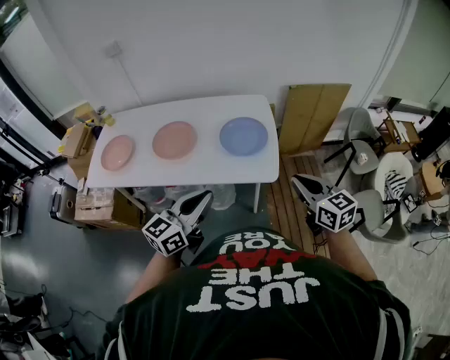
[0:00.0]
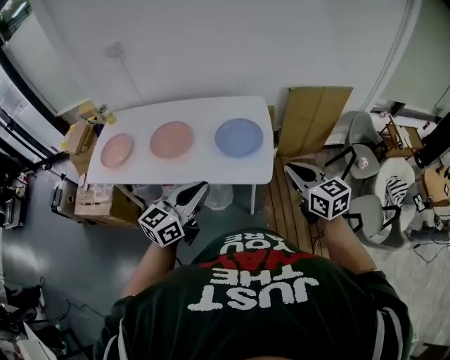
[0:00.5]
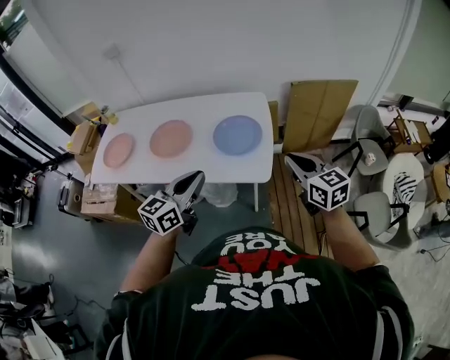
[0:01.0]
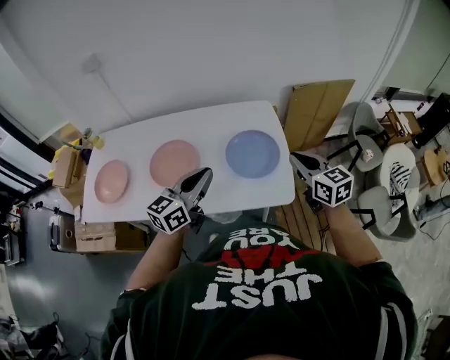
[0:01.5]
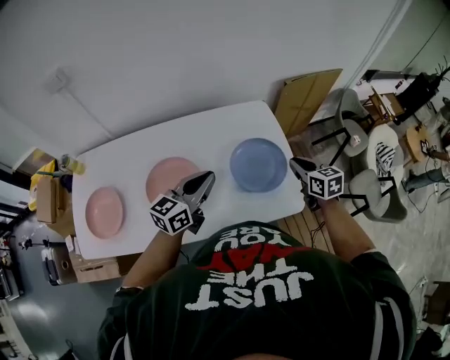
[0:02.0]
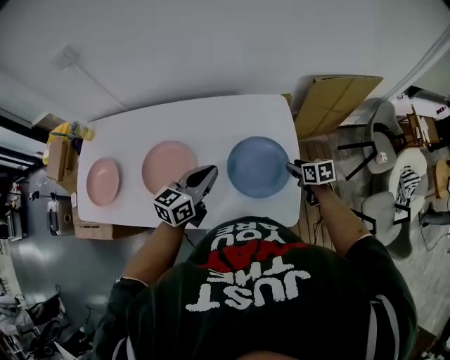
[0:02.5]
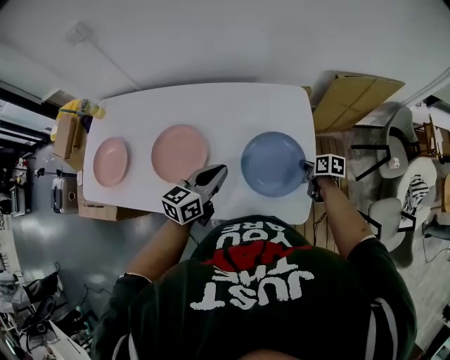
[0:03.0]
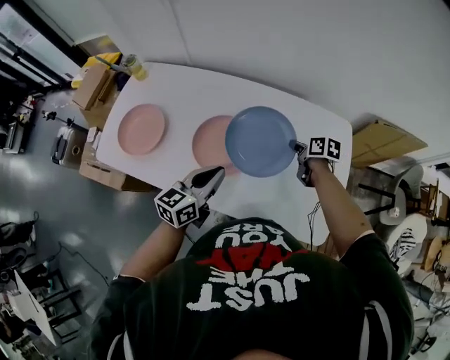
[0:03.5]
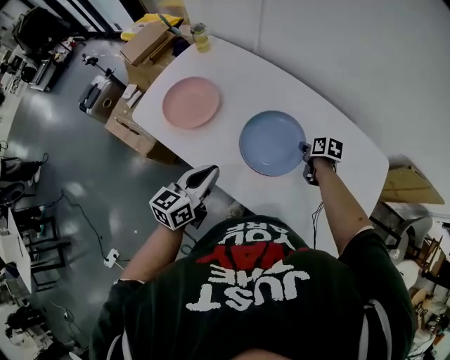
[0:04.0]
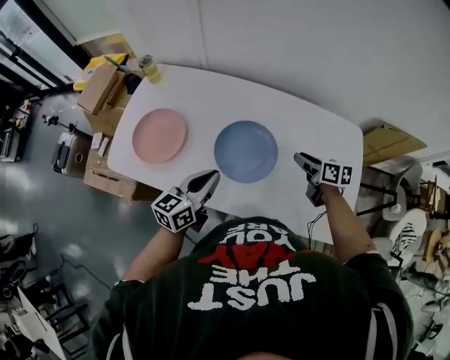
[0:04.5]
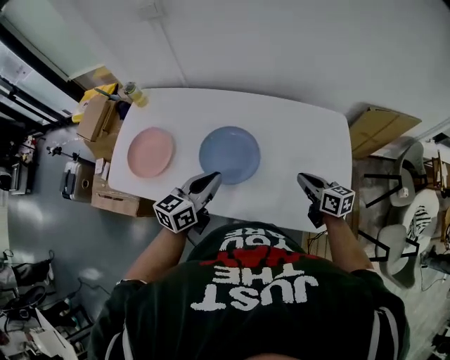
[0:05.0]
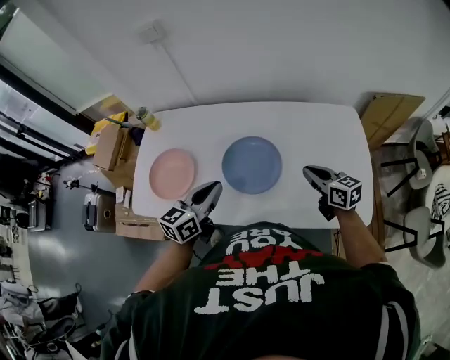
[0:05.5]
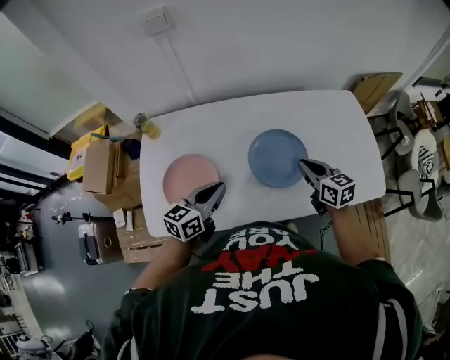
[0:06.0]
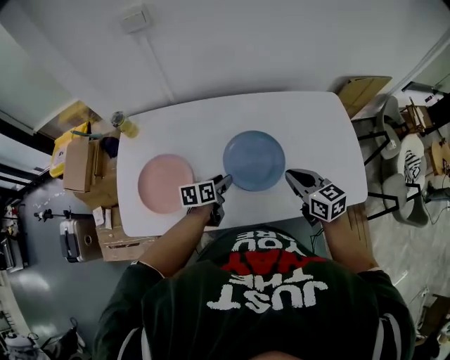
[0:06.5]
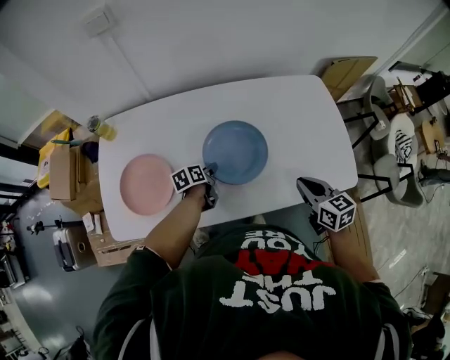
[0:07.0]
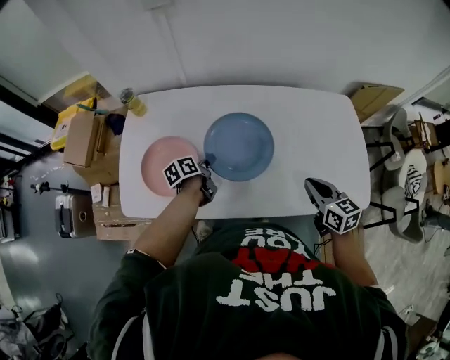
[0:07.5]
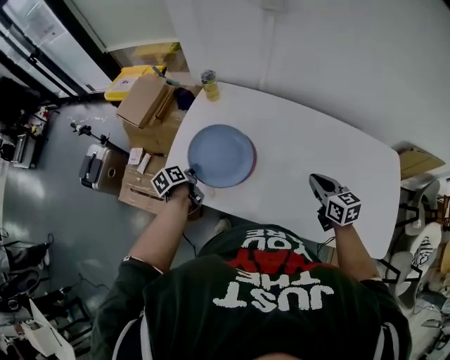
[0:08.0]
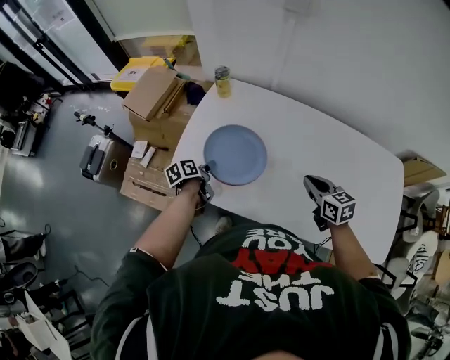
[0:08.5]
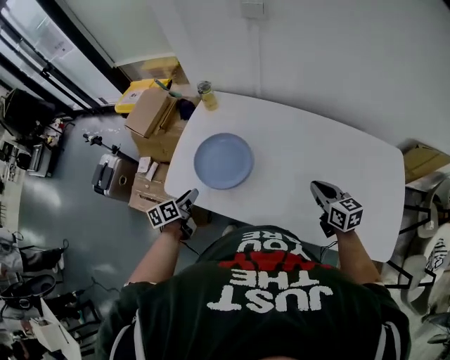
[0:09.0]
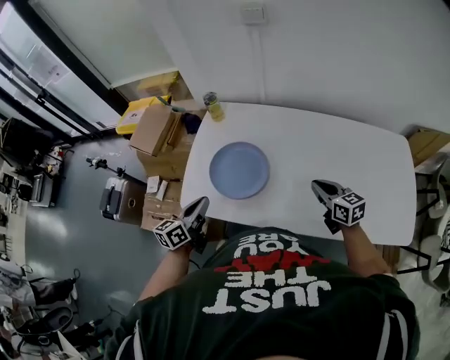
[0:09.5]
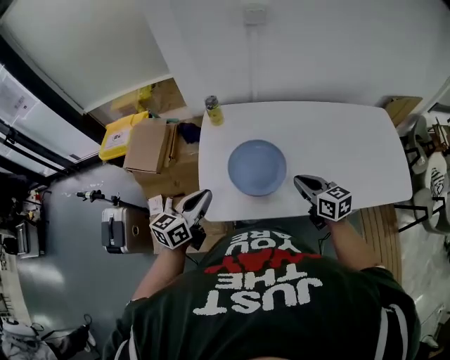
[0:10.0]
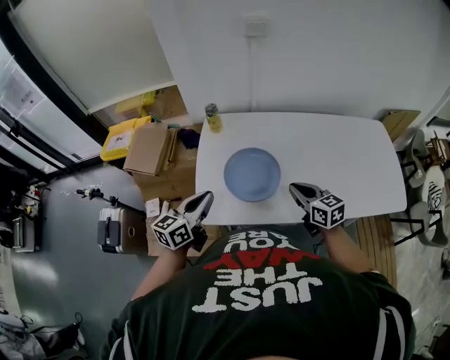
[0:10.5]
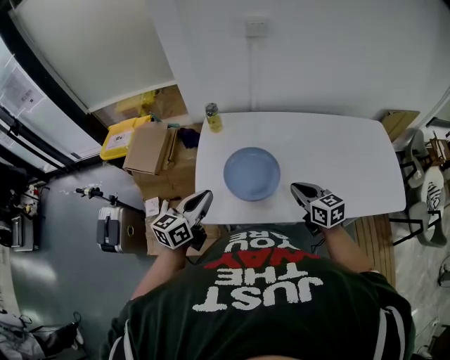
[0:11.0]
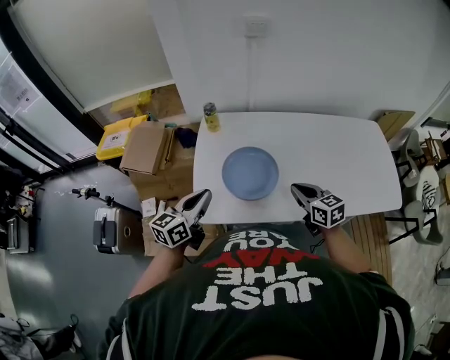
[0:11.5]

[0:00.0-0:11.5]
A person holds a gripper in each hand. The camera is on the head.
0:00.0 to 0:02.0: The left gripper travels forward by some 30 cm; the right gripper moves forward and downward, approximately 30 cm, and changes its angle by some 30 degrees.
0:02.0 to 0:04.0: The left gripper shifts by approximately 30 cm, and rotates about 50 degrees. Meanwhile the right gripper swings up and down, some 20 cm each way, with 2 reversals, changes its angle by approximately 40 degrees, and opens and closes again.
0:04.0 to 0:06.0: The right gripper travels upward by about 15 cm, rotates approximately 40 degrees, and opens, then closes again. Meanwhile the left gripper changes place by some 15 cm, and turns by roughly 40 degrees.
0:06.0 to 0:07.5: The left gripper moves downward and forward, some 20 cm, rotates around the line of its fingers by roughly 50 degrees, counterclockwise from behind, and opens, then closes again. The right gripper heads to the right and backward, covering roughly 10 cm.
0:07.5 to 0:09.5: The right gripper swings left and right, roughly 20 cm each way, with 2 reversals. Meanwhile the left gripper heads to the left and upward, covering approximately 30 cm, turns by approximately 40 degrees, and opens and closes again.
0:09.5 to 0:11.5: The right gripper moves to the left, about 15 cm; the left gripper goes approximately 10 cm to the left and upward, and turns by about 20 degrees.

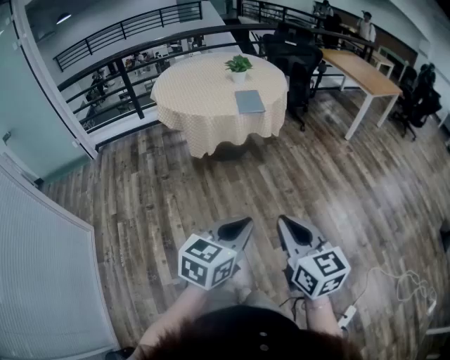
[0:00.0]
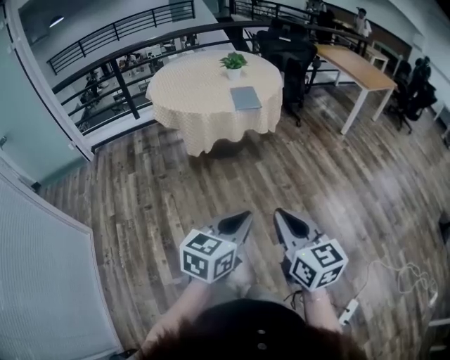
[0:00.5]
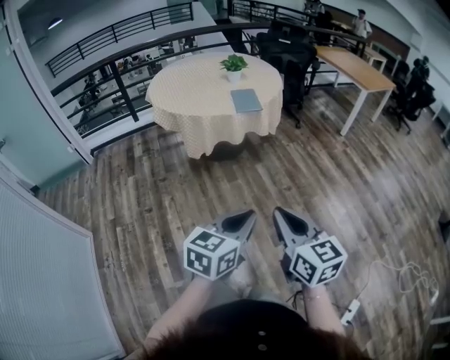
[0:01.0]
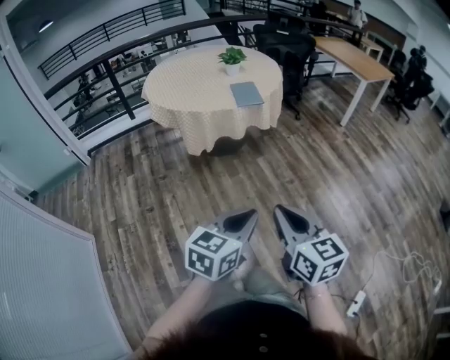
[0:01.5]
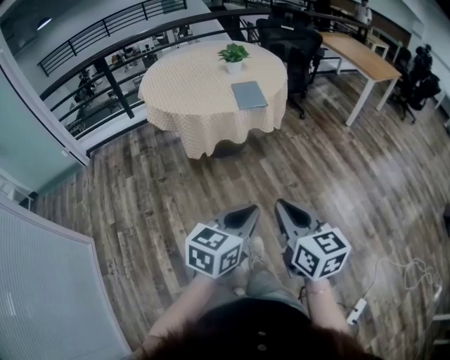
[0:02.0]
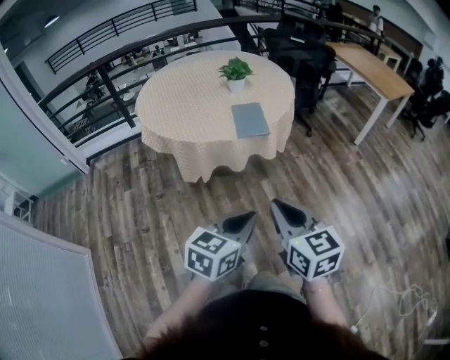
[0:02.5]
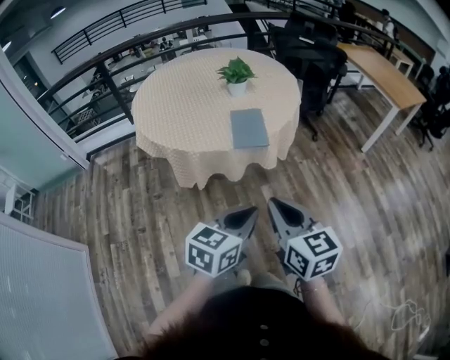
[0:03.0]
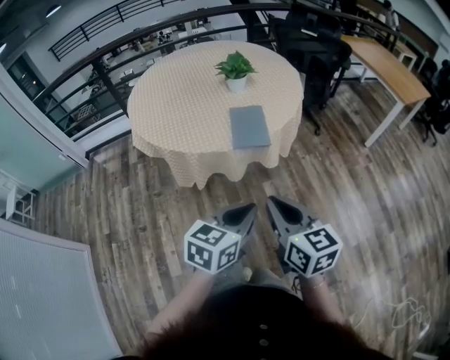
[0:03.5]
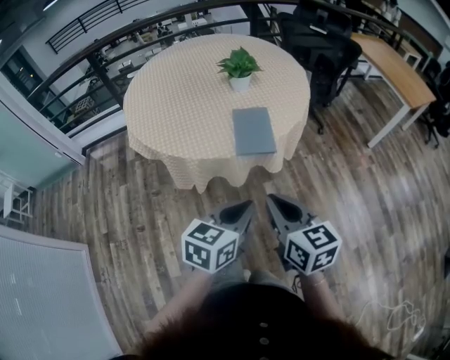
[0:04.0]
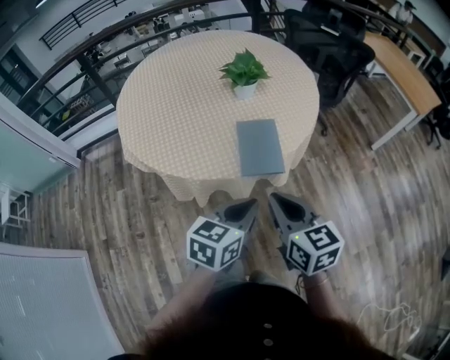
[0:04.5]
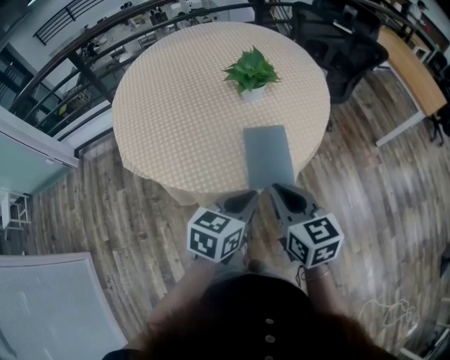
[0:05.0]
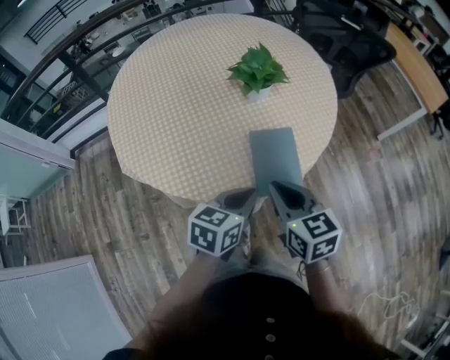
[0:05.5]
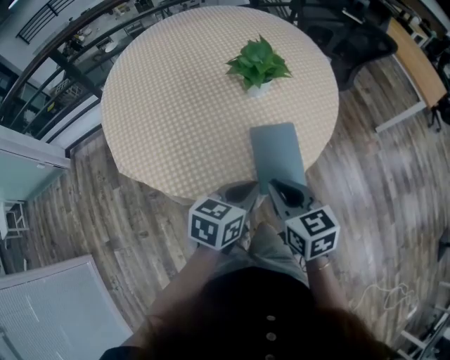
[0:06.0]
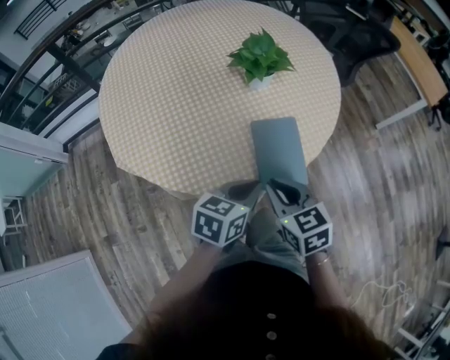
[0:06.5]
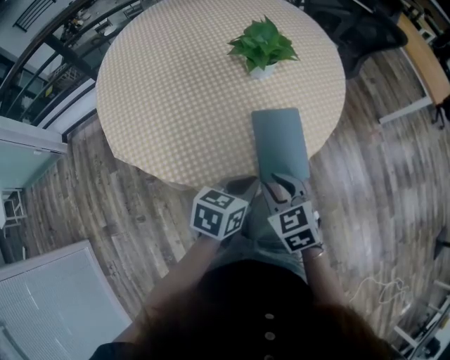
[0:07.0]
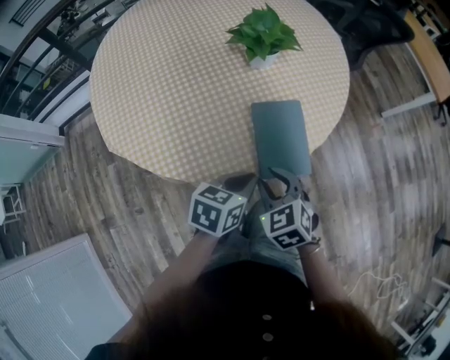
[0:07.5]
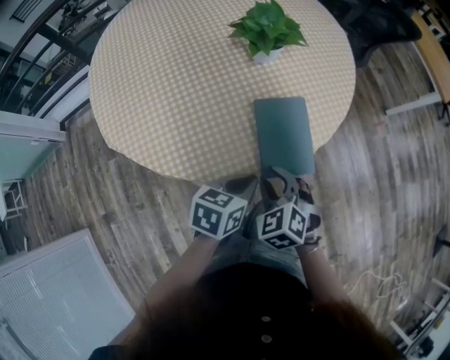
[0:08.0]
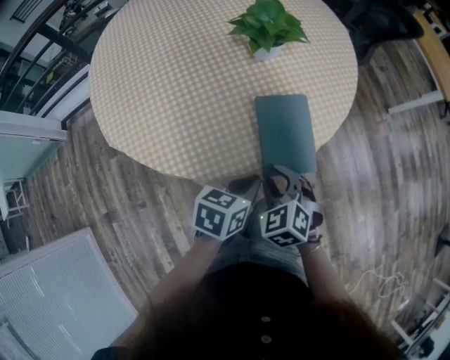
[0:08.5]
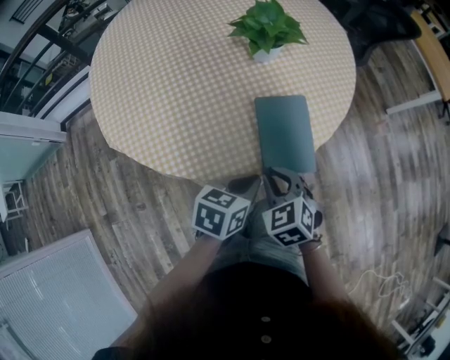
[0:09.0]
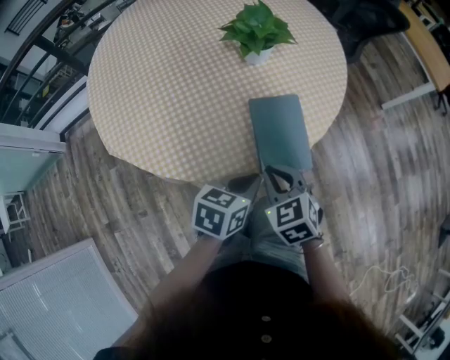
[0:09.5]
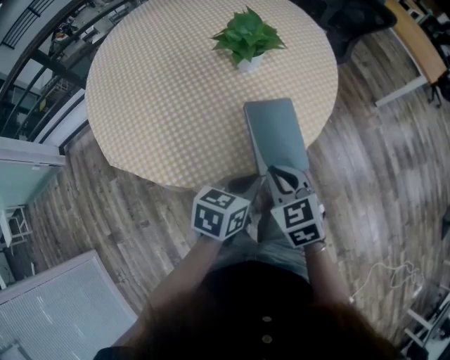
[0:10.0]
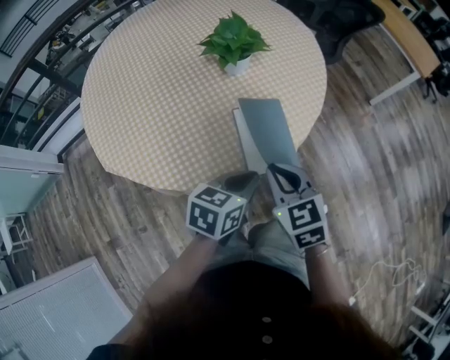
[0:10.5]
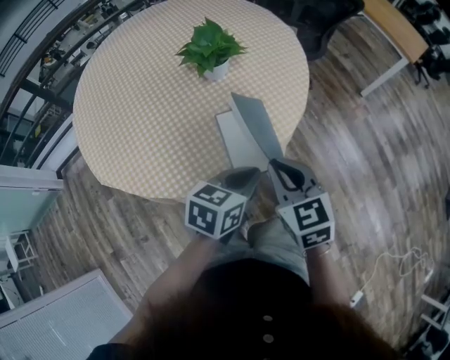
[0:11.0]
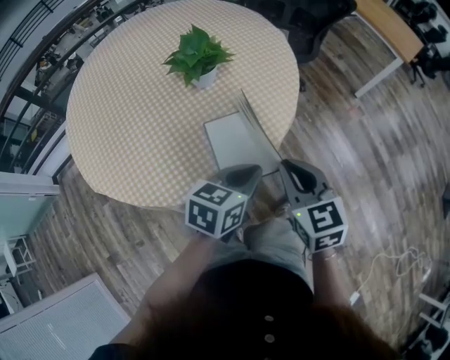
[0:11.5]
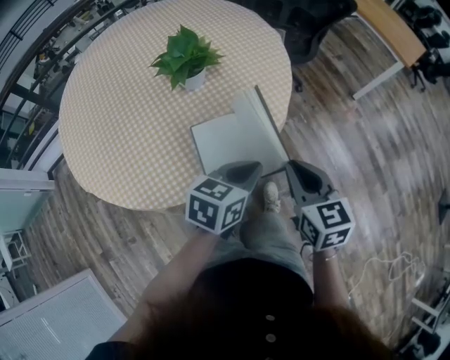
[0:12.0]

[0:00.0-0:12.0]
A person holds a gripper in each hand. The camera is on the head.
0:00.0 to 0:02.0: The left gripper is displaced forward by about 10 cm. The right gripper is displaced forward and to the left by some 15 cm.
0:02.0 to 0:04.0: The grippers both shift forward by about 35 cm.
0:04.0 to 0:06.0: The right gripper heads forward and to the left, covering about 25 cm. The left gripper heads forward, covering about 25 cm.
0:06.0 to 0:08.0: The two grippers go approximately 10 cm downward. The right gripper changes its angle by some 40 degrees, and opens up.
0:08.0 to 0:10.0: The right gripper heads upward, covering approximately 5 cm, swivels approximately 20 degrees, and closes up.
0:10.0 to 0:12.0: The grippers both shift to the right, forward and upward by roughly 20 cm. The right gripper changes its angle by roughly 20 degrees.

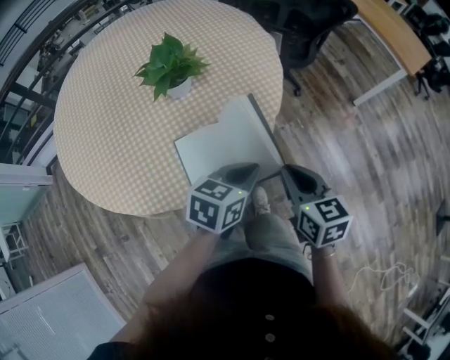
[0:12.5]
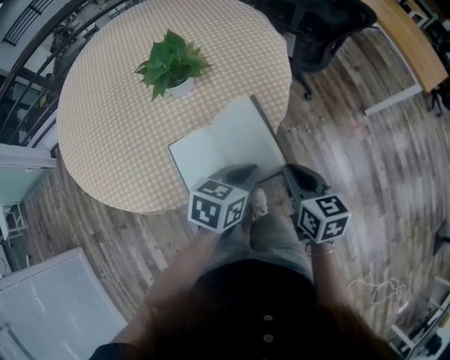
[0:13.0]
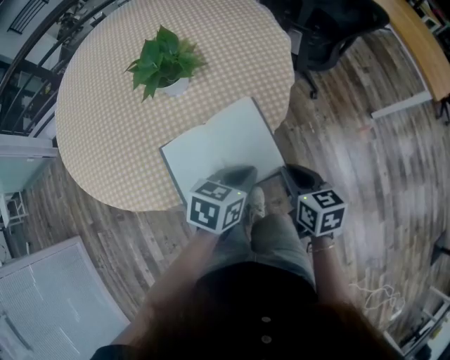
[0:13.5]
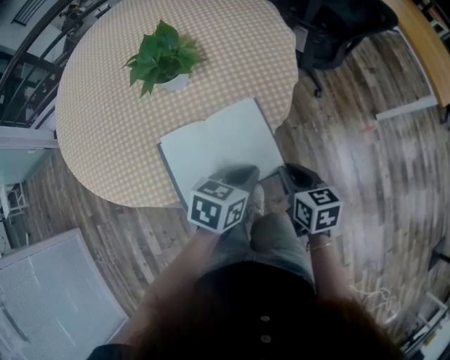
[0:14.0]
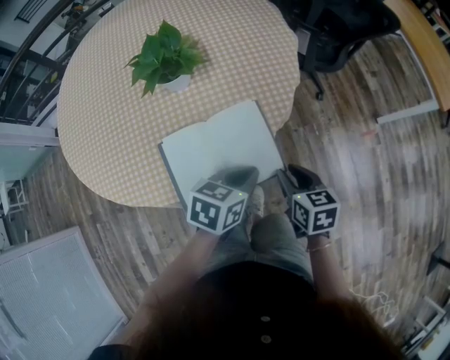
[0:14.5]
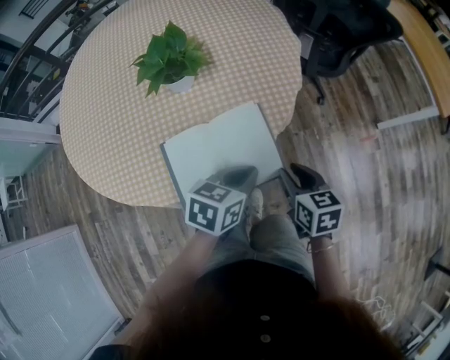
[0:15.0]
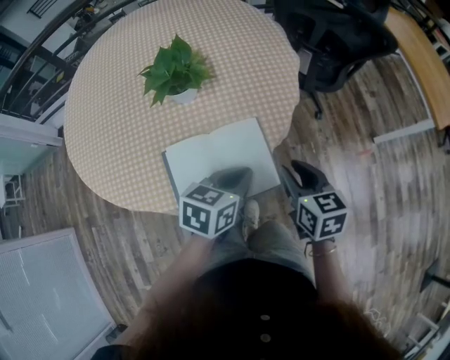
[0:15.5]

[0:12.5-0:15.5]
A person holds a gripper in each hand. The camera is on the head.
0:12.5 to 0:14.0: The right gripper heads downward and forward, covering some 15 cm. The left gripper moves downward and forward, about 10 cm.
0:14.0 to 0:15.5: The right gripper is displaced upward by roughly 5 cm. Meanwhile the left gripper ends up some 5 cm from where it was.
